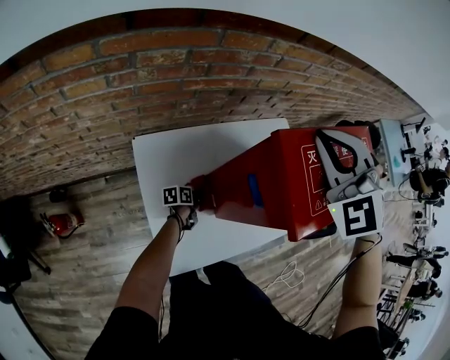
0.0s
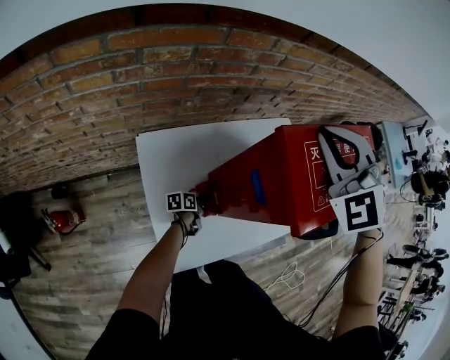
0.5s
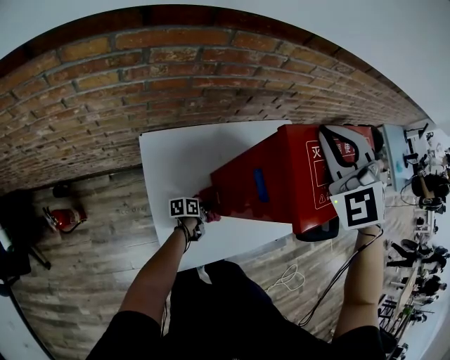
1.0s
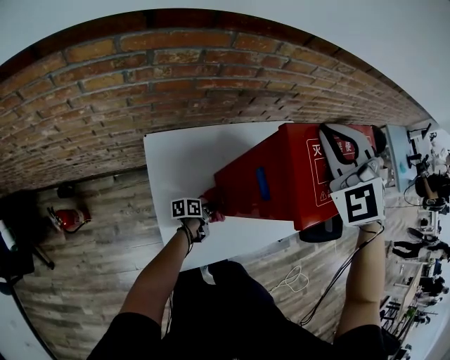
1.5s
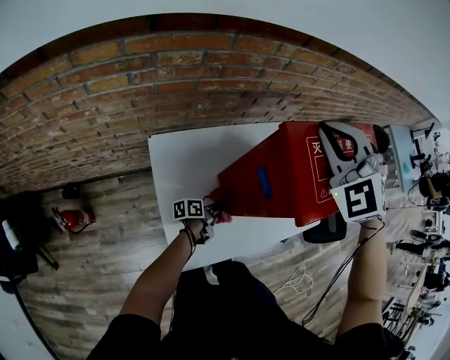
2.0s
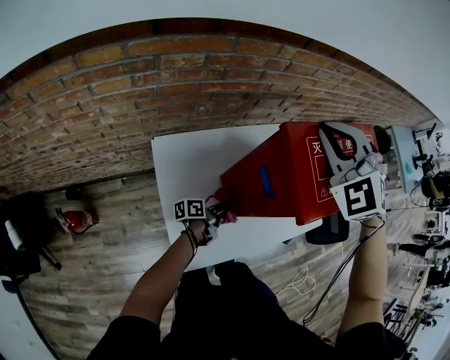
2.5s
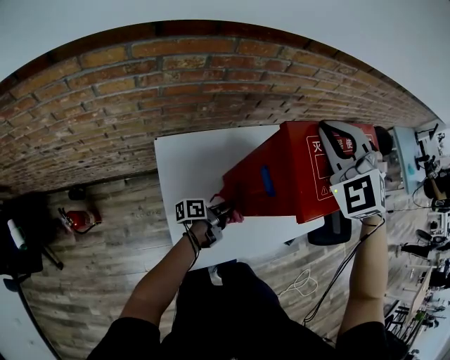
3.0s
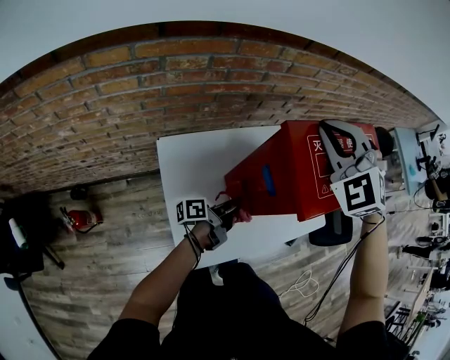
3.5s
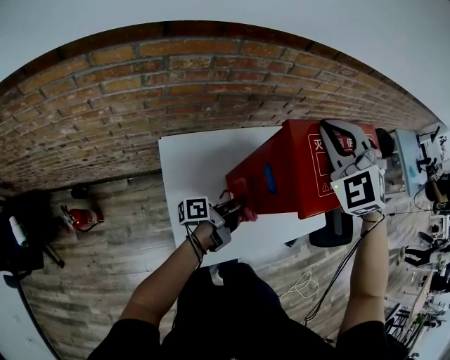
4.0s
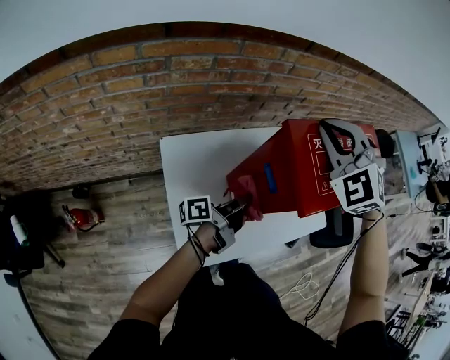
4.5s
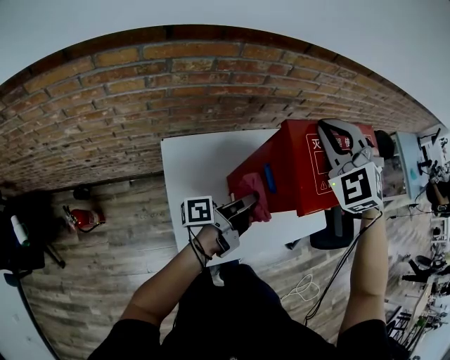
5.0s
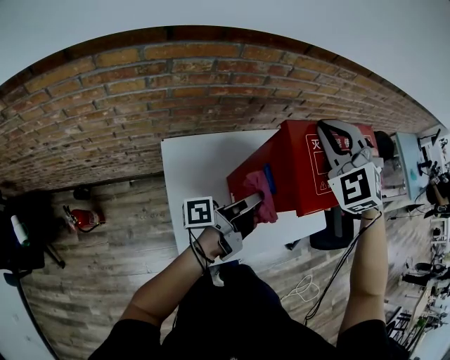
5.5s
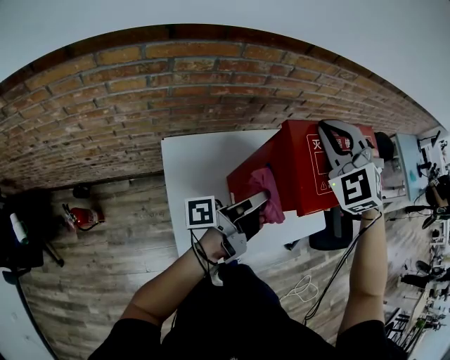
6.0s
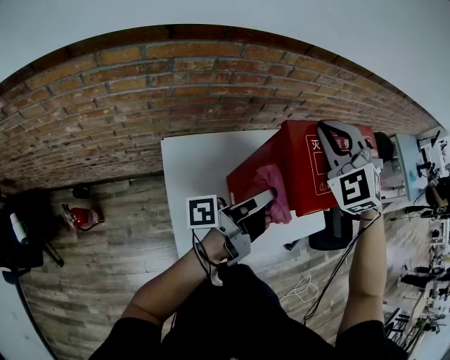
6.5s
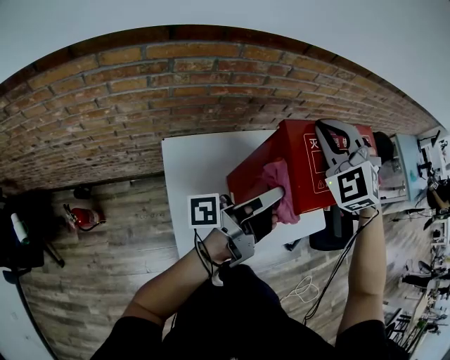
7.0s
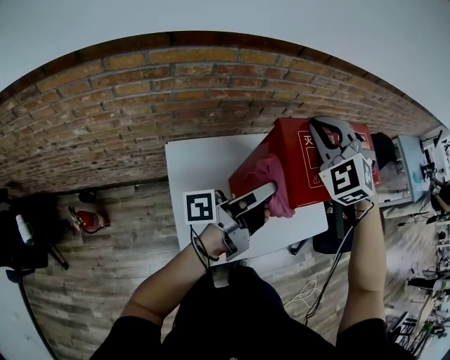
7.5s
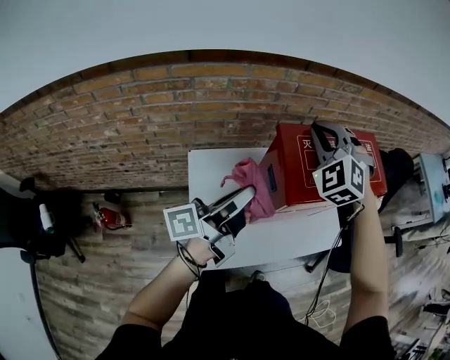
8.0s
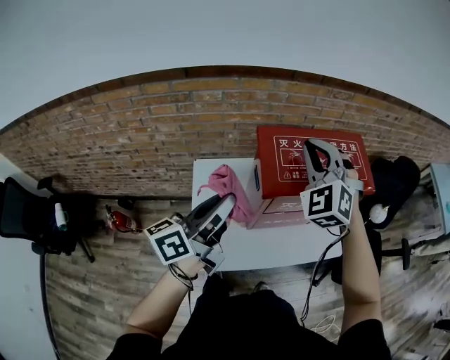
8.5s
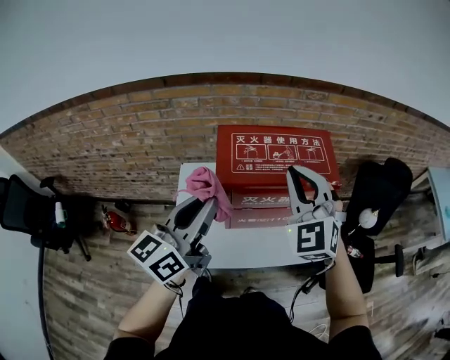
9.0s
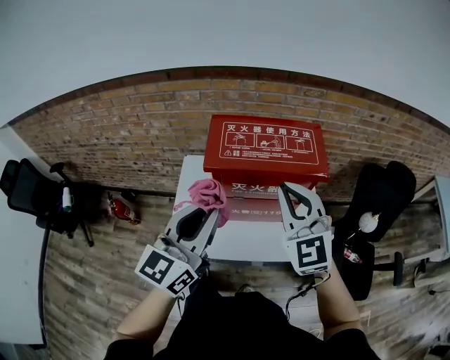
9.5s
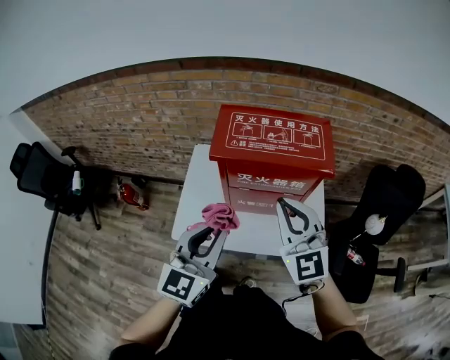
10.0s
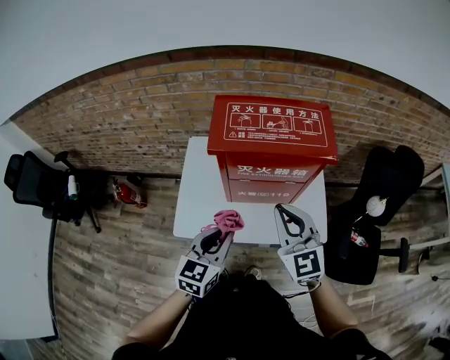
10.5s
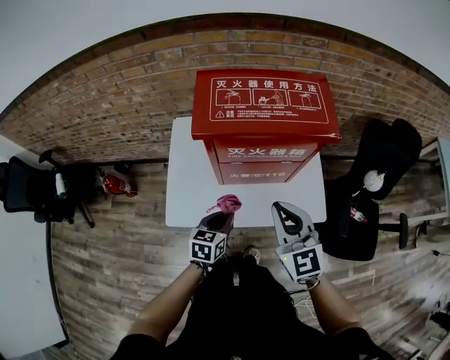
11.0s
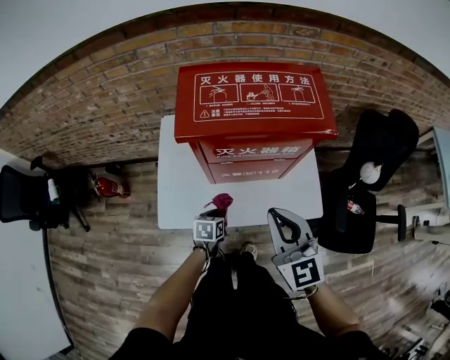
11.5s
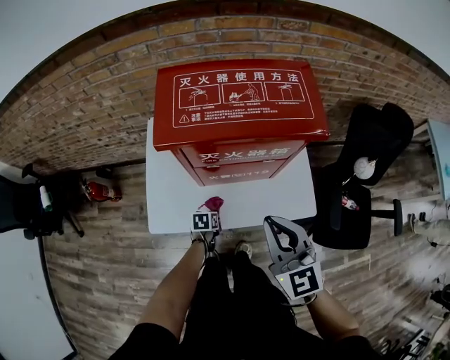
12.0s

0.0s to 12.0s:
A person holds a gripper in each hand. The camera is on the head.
0.0s to 2.0s: The left gripper shifts approximately 10 cm upward and backward.
2.0s to 4.0s: The left gripper moves upward, about 20 cm, and changes its angle by approximately 20 degrees.
4.0s to 6.0s: The left gripper shifts approximately 15 cm upward.
6.0s to 8.0s: The left gripper heads upward, covering about 10 cm, and rotates approximately 30 degrees.
8.0s to 10.0s: The left gripper changes place by about 30 cm, and rolls clockwise, seen from behind, by about 80 degrees. Meanwhile the right gripper changes place by some 30 cm, and swivels roughly 50 degrees.
10.0s to 12.0s: The right gripper heads downward, covering some 10 cm, and swivels about 20 degrees. The left gripper heads downward, covering approximately 50 cm, and points its fingers roughly 60 degrees further downward.

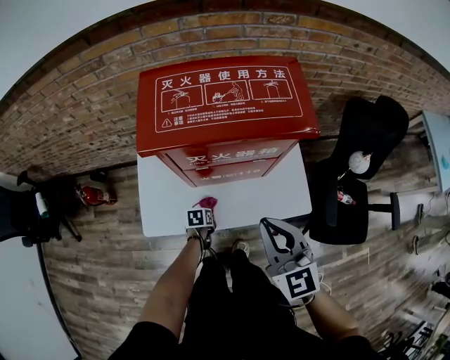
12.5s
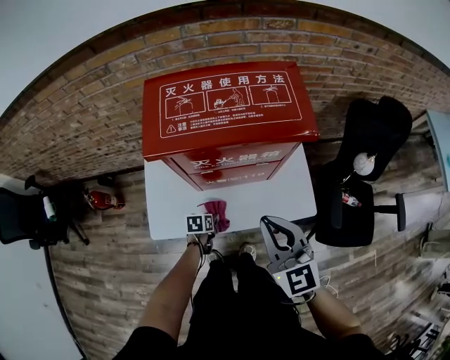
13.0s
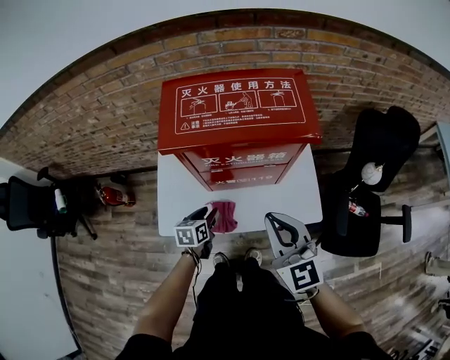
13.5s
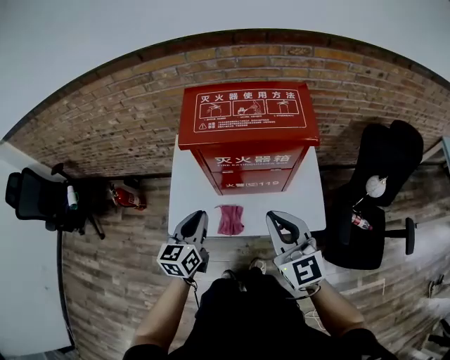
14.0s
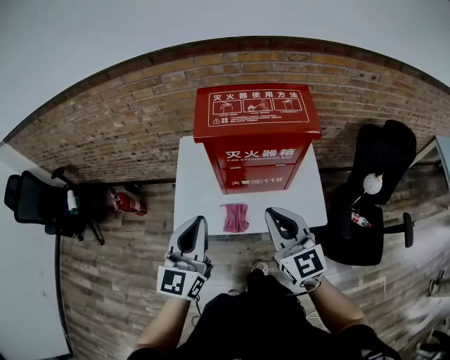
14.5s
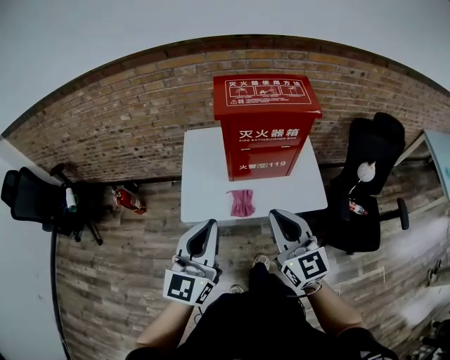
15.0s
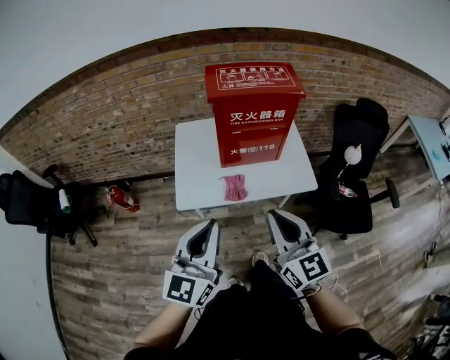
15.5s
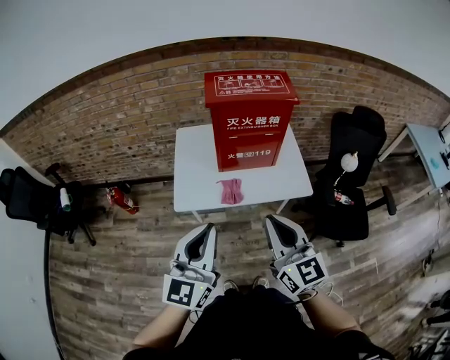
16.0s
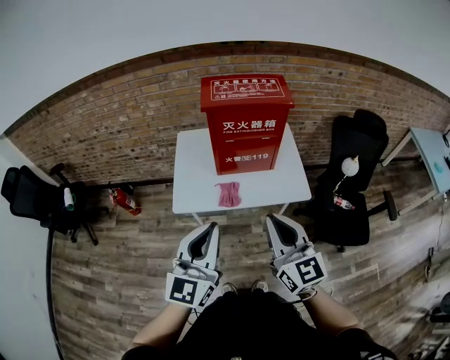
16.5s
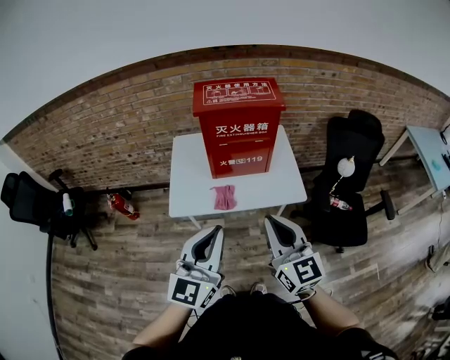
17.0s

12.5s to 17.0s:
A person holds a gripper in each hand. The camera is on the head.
12.5s to 14.5s: The left gripper goes about 50 cm upward, tilts its fingers approximately 70 degrees upward, and opens and closes again; the right gripper heads upward, covering about 5 cm.
14.5s to 17.0s: The two grippers go approximately 25 cm backward.

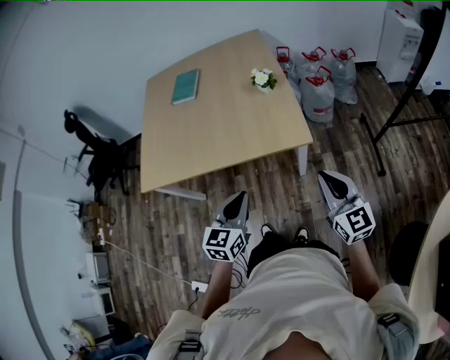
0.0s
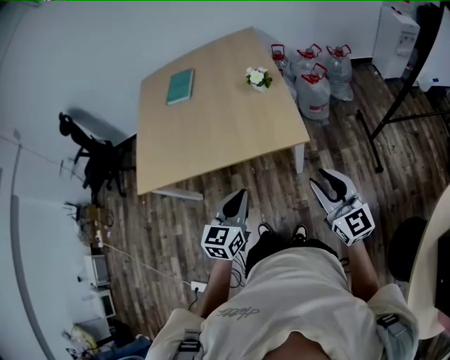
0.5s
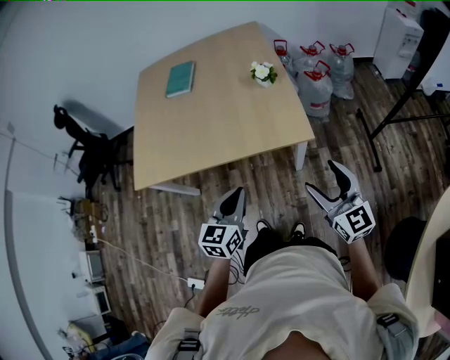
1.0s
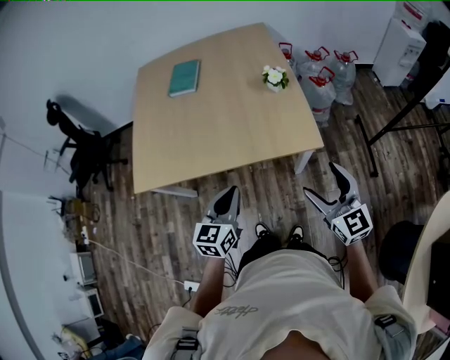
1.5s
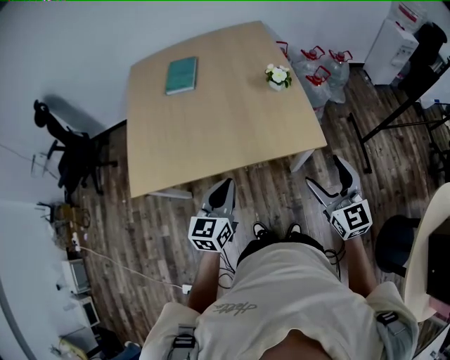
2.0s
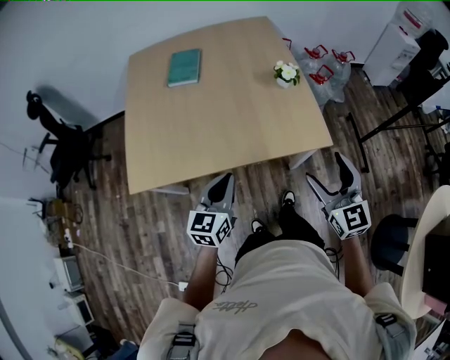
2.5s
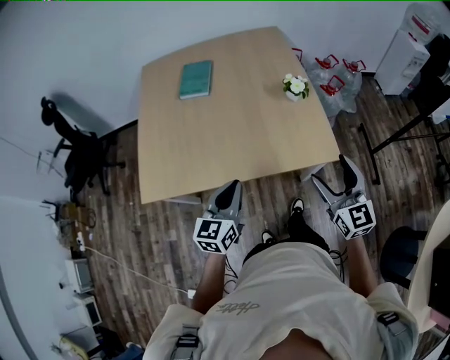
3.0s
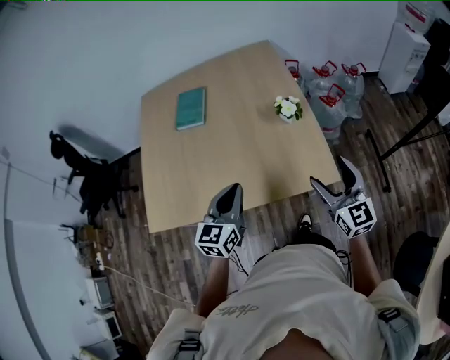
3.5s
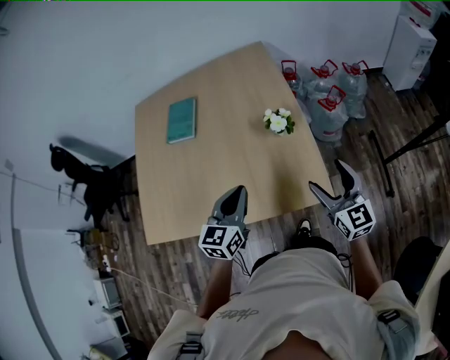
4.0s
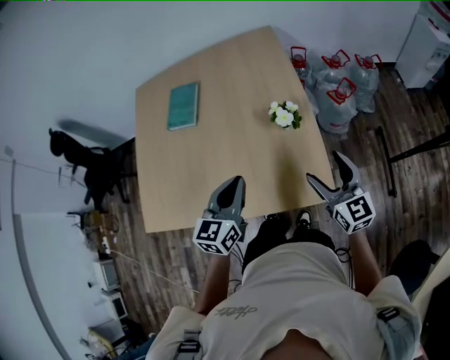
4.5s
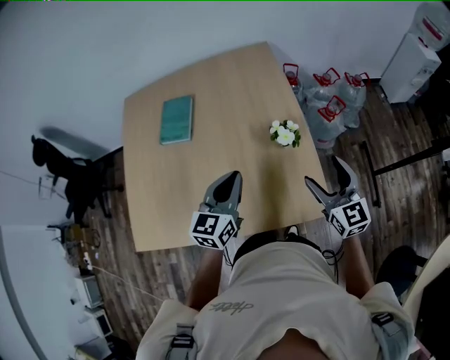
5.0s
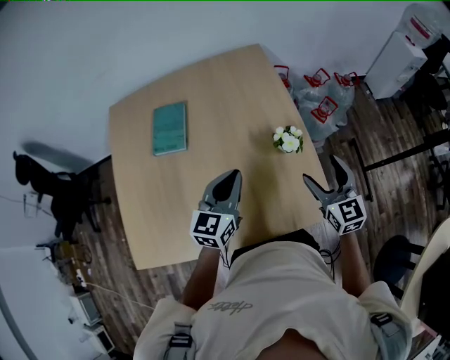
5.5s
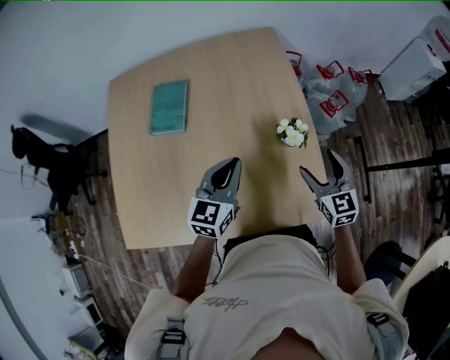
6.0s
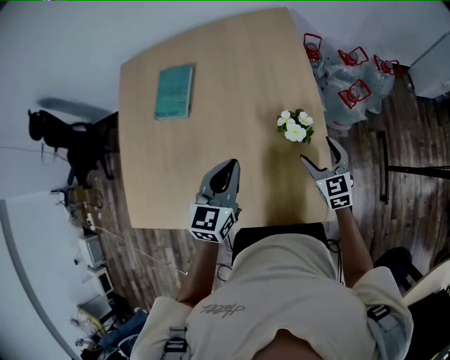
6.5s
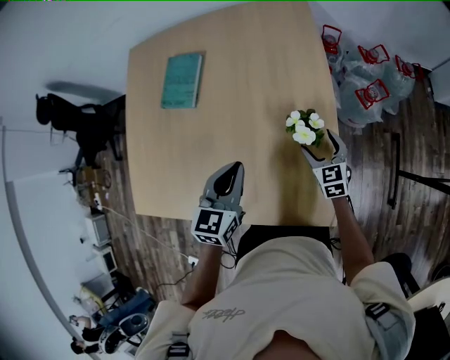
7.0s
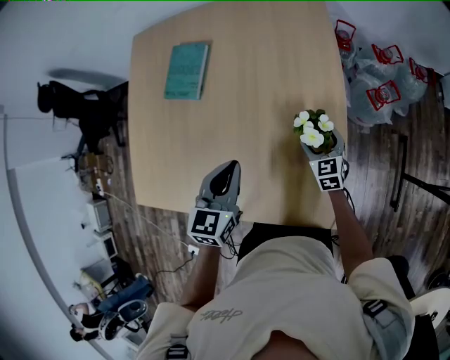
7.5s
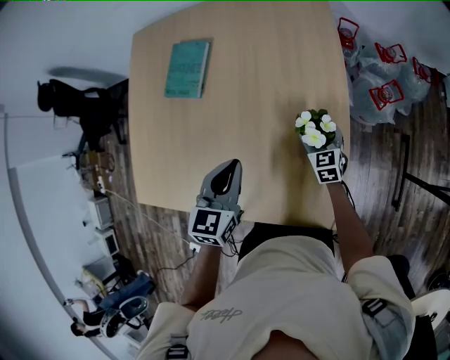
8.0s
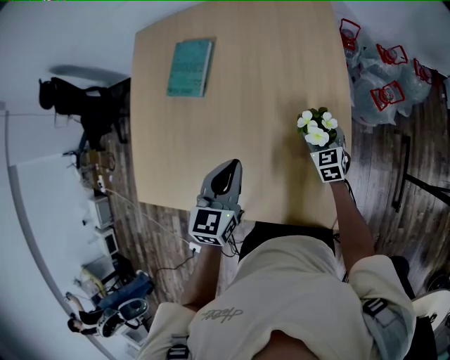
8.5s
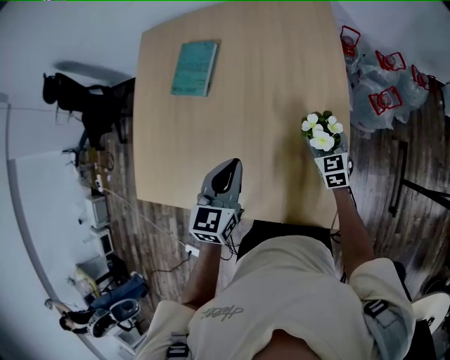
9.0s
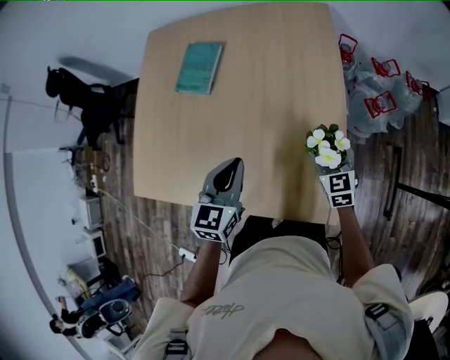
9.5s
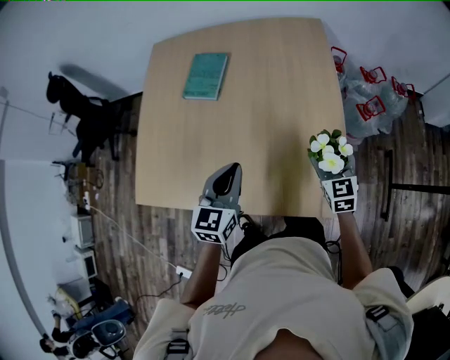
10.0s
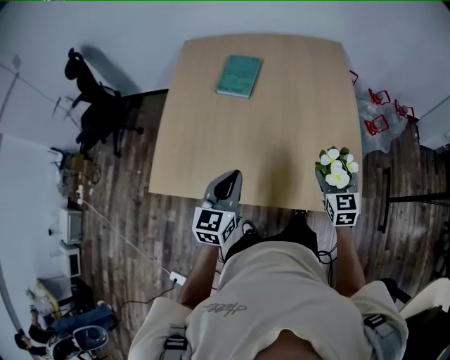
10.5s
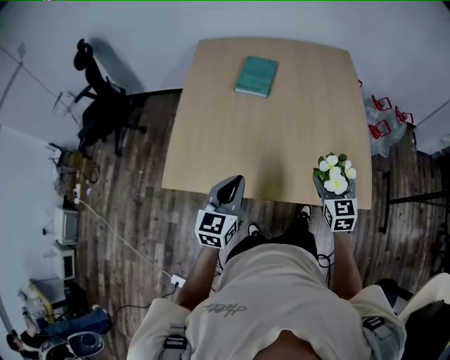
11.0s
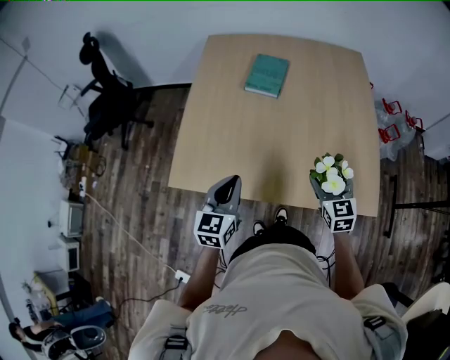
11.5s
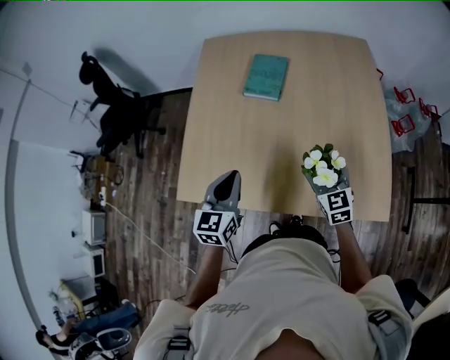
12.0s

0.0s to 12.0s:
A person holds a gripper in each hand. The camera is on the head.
0.0s to 2.0s: Both grippers travel together to the left and forward, about 15 cm. The right gripper opens.
2.0s to 4.0s: The left gripper is displaced forward and to the right by some 25 cm; the right gripper is displaced forward by some 20 cm.
4.0s to 6.0s: The right gripper goes about 15 cm forward and to the left. Meanwhile the left gripper heads forward, covering some 15 cm.
6.0s to 8.0s: The left gripper rotates about 20 degrees; the right gripper moves downward and forward, roughly 25 cm.
8.0s to 10.0s: The right gripper is displaced upward and backward by some 20 cm, while the left gripper travels backward and to the left by some 10 cm.
10.0s to 12.0s: Both grippers travel together to the left, some 25 cm.
